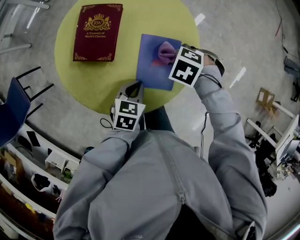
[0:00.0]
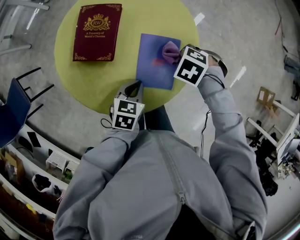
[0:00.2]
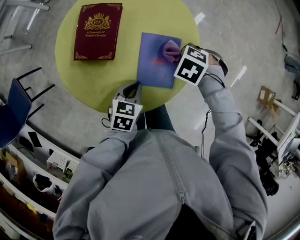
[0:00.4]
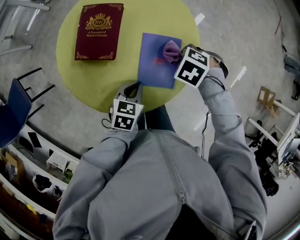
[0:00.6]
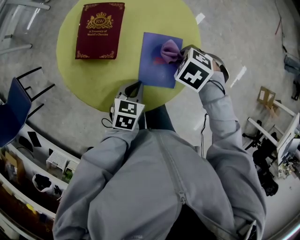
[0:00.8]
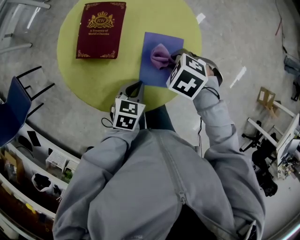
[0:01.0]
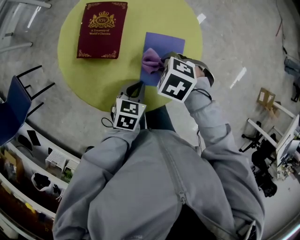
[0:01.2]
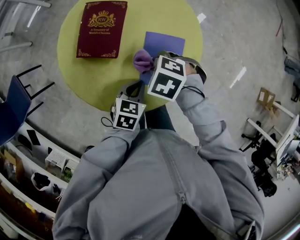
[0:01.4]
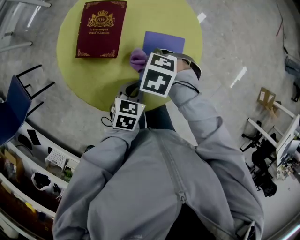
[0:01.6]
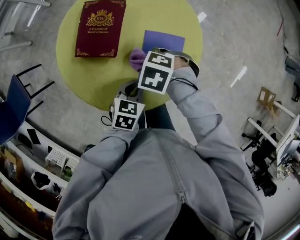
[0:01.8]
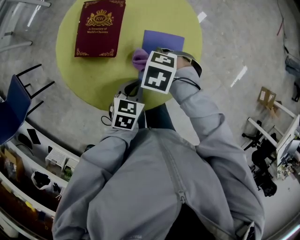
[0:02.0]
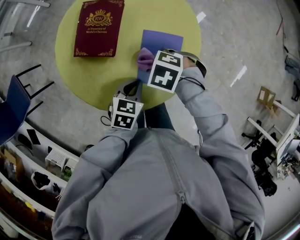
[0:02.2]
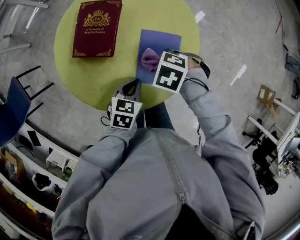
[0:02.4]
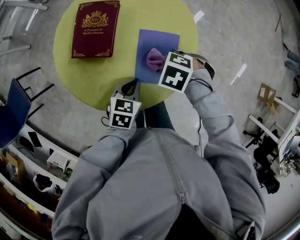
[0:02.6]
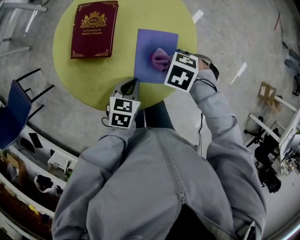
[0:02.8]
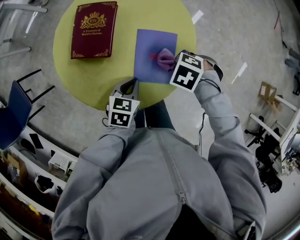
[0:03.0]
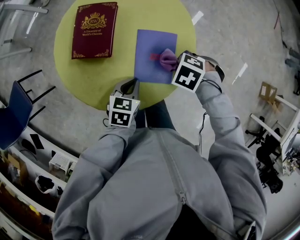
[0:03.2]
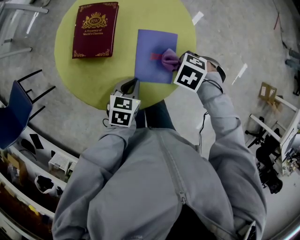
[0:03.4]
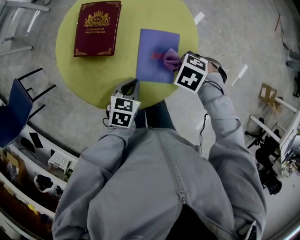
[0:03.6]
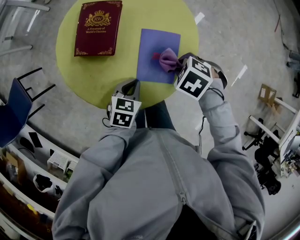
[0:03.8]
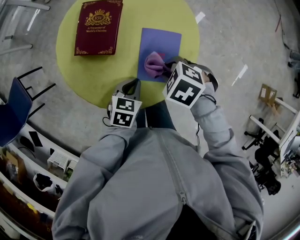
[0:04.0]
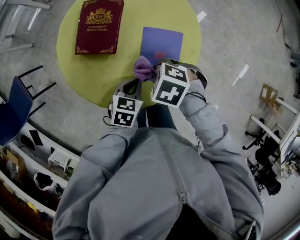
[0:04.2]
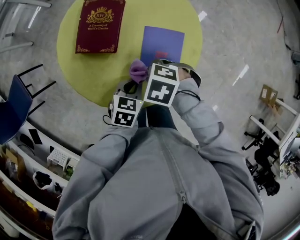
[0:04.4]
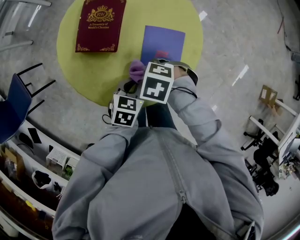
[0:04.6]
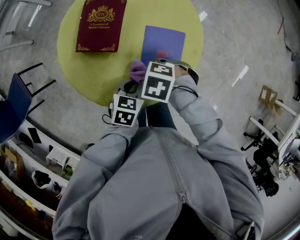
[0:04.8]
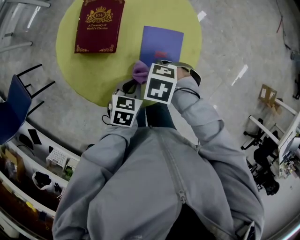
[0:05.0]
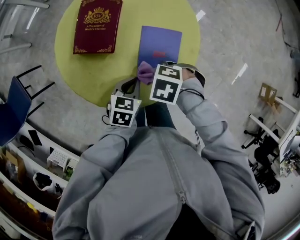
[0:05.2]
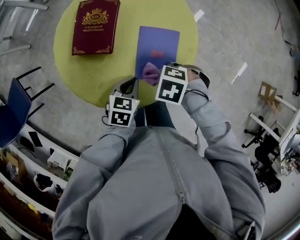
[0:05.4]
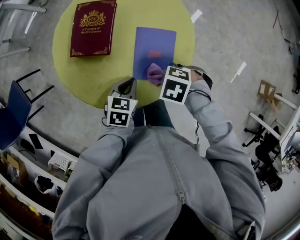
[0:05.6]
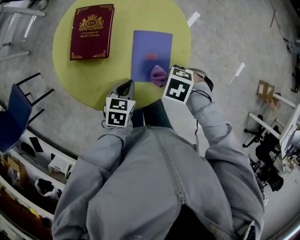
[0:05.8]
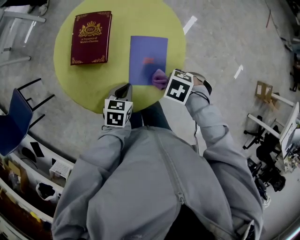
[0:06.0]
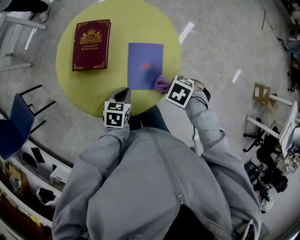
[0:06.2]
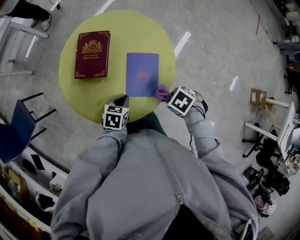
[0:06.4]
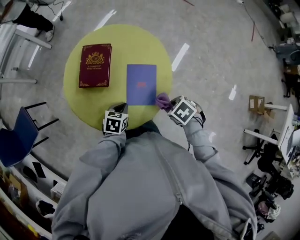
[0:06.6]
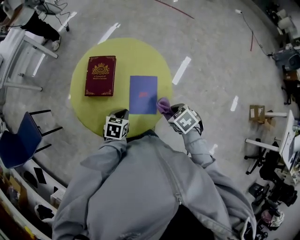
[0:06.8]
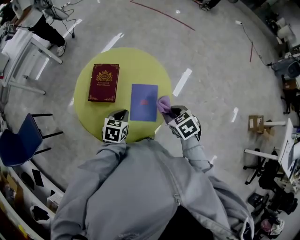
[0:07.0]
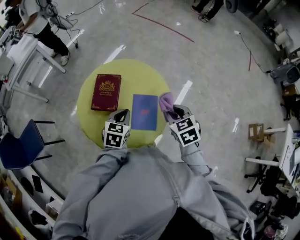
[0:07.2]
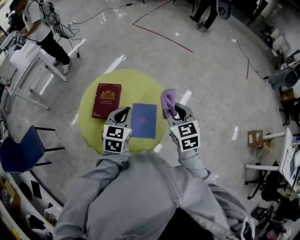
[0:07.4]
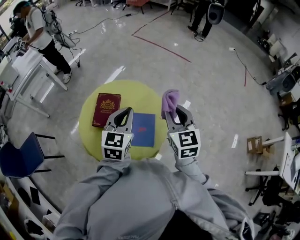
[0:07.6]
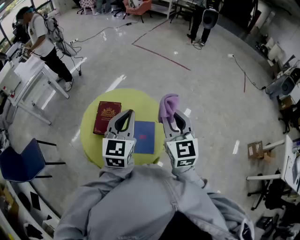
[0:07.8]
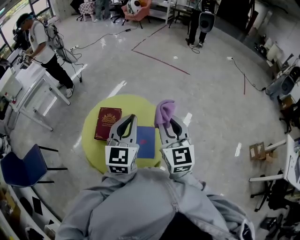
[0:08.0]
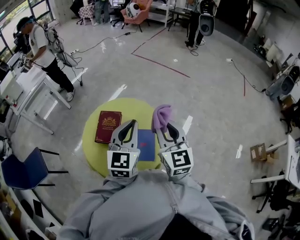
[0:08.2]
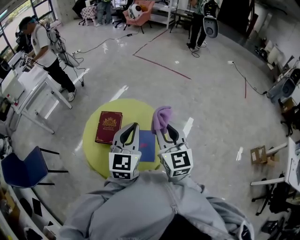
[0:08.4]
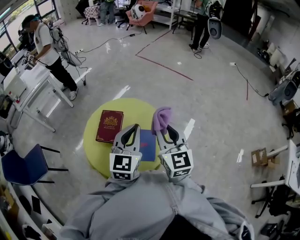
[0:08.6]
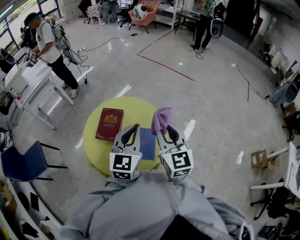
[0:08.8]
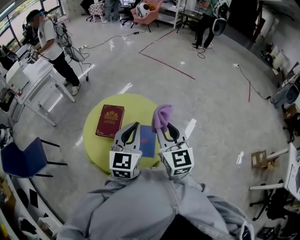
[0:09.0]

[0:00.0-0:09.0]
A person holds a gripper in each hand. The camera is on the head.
0:00.0 to 0:01.6: The right gripper changes place by approximately 10 cm.
0:01.6 to 0:03.0: The right gripper changes place by roughly 15 cm.
0:03.0 to 0:04.4: The right gripper shifts by about 15 cm.
0:04.4 to 0:06.0: The right gripper changes place by approximately 15 cm.
0:06.0 to 0:07.6: Both grippers move upward, roughly 35 cm. The left gripper angles its fingers upward, by roughly 40 degrees. Meanwhile the right gripper tips its fingers upward by approximately 60 degrees.
0:07.6 to 0:09.0: The left gripper travels backward by approximately 5 cm; the right gripper moves some 5 cm.

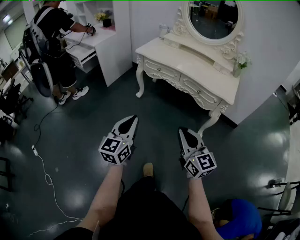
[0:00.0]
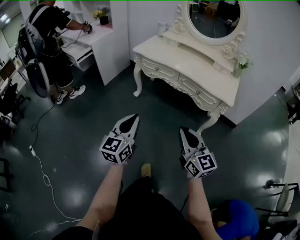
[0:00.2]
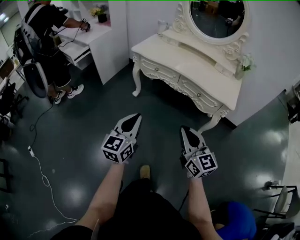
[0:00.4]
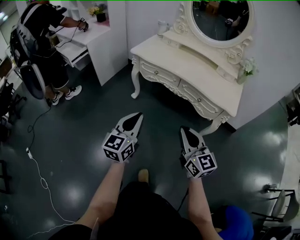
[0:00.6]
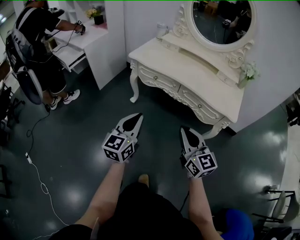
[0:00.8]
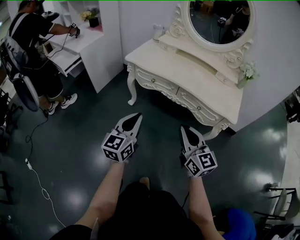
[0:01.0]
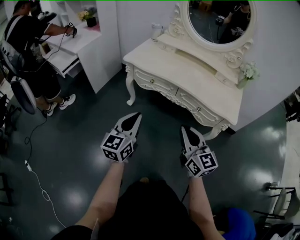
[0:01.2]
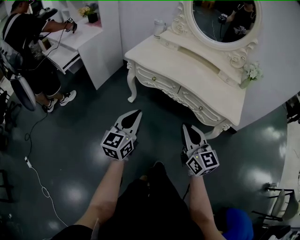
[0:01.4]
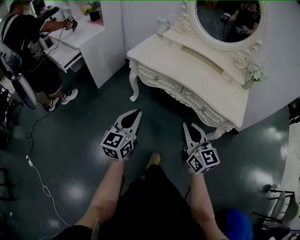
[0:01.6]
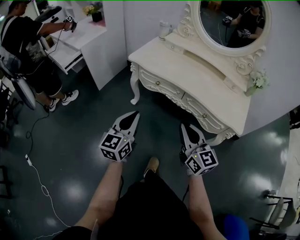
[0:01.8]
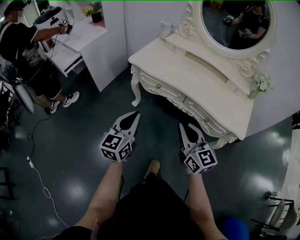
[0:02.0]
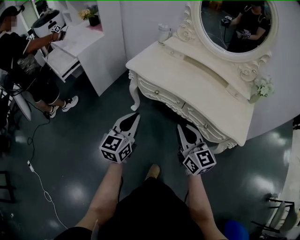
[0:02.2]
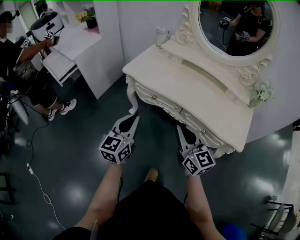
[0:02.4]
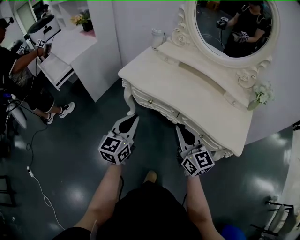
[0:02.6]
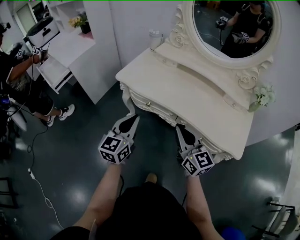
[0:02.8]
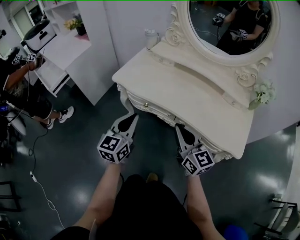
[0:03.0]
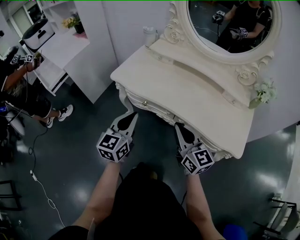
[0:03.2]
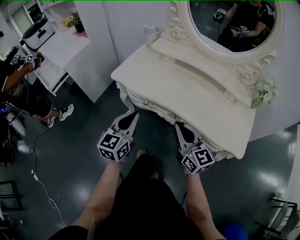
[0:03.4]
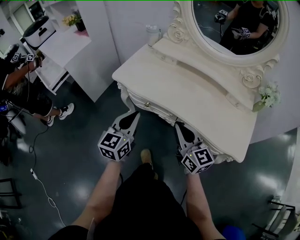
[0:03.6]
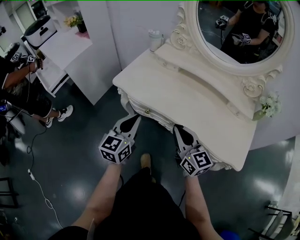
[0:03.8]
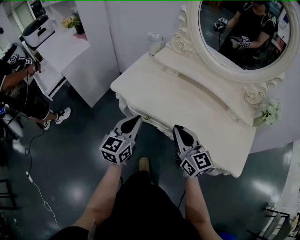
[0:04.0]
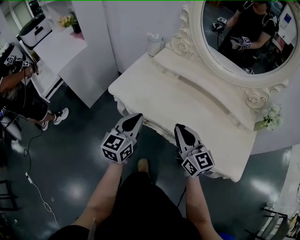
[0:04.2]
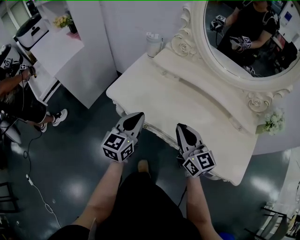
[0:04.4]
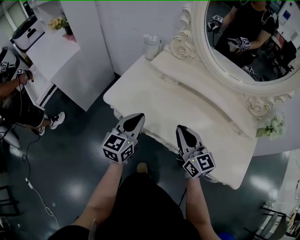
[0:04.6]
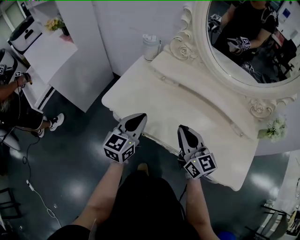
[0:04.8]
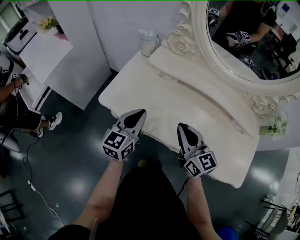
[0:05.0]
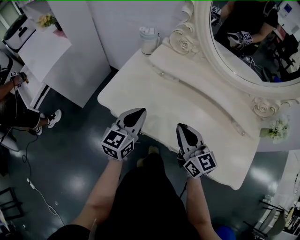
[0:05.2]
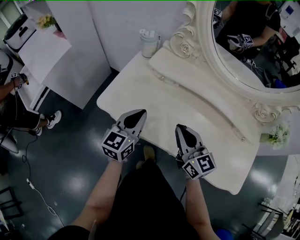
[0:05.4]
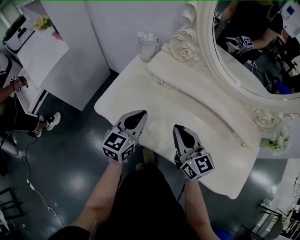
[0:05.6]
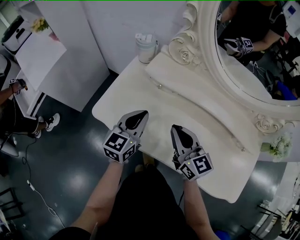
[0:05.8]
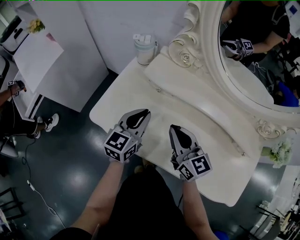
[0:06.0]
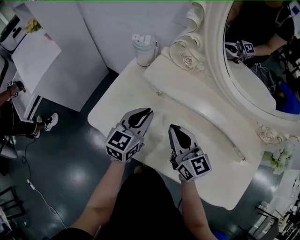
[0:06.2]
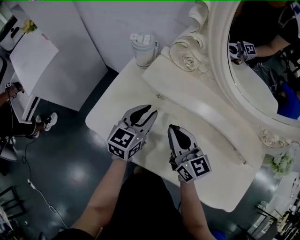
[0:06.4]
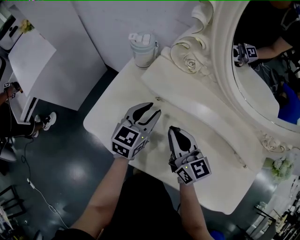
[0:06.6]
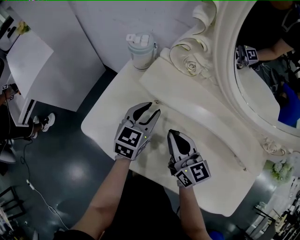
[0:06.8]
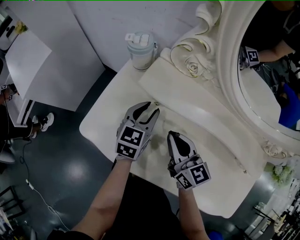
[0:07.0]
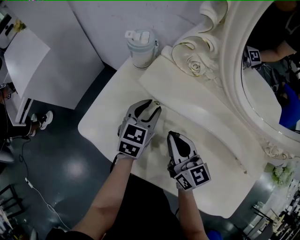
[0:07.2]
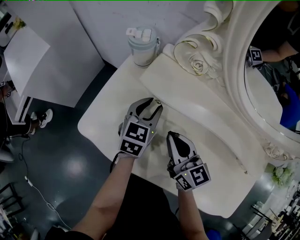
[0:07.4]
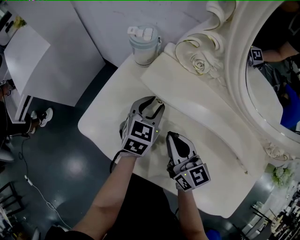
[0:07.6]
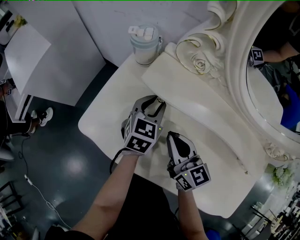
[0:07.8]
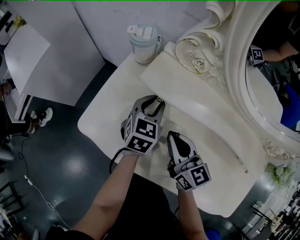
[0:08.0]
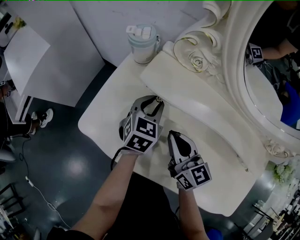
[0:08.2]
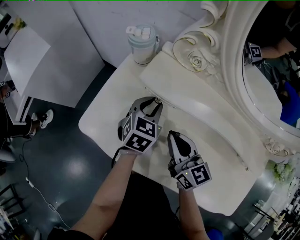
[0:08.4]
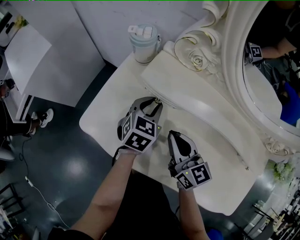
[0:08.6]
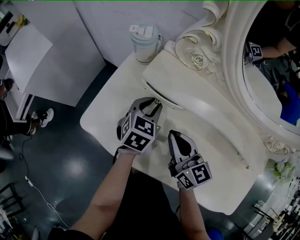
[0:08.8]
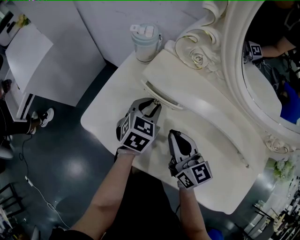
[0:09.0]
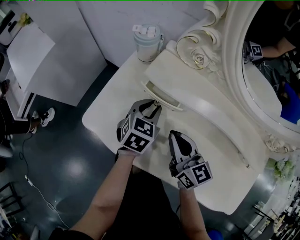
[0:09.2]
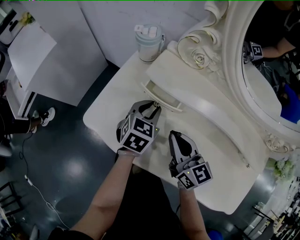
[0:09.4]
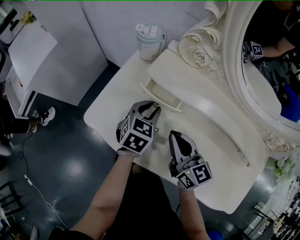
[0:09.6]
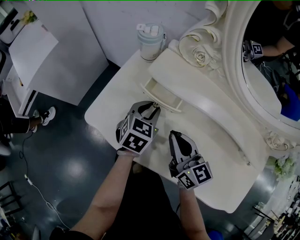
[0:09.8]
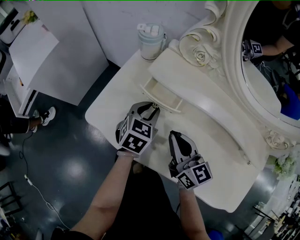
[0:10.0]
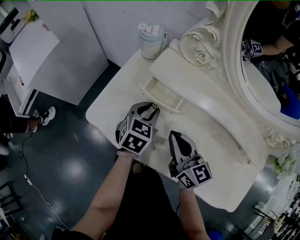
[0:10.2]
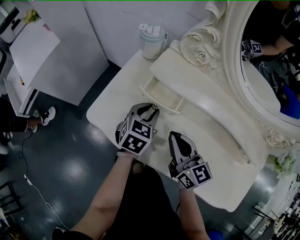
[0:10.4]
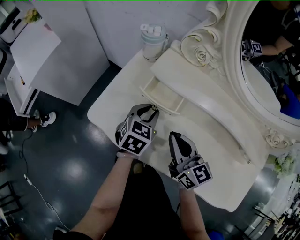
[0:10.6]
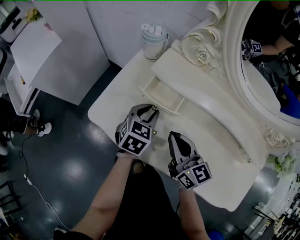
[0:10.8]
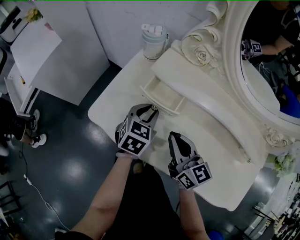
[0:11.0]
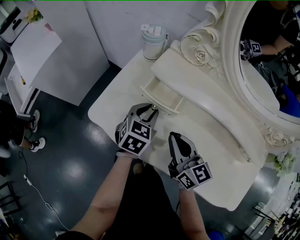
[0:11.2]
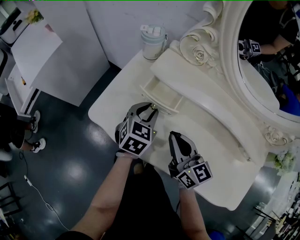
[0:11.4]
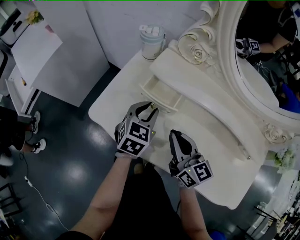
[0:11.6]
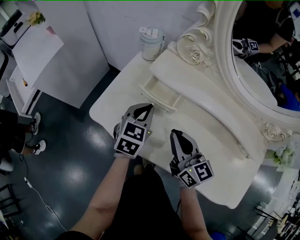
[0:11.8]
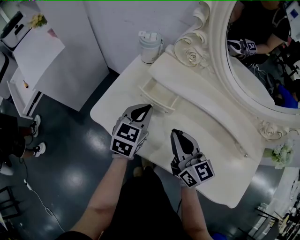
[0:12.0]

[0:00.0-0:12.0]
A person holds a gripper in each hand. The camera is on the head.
0:00.0 to 0:01.6: Both grippers travel together forward, approximately 30 cm.
0:01.6 to 0:03.0: The two grippers go about 20 cm forward.
0:03.0 to 0:04.4: Both grippers travel together forward, some 20 cm.
0:04.4 to 0:06.0: The two grippers go some 20 cm forward.
0:06.0 to 0:07.6: The left gripper is displaced forward and downward by about 15 cm, and opens, while the right gripper goes about 10 cm downward and forward.
0:07.6 to 0:09.0: The grippers move only a little.
0:09.0 to 0:10.4: The left gripper ends up some 5 cm from where it was.
0:10.4 to 0:12.0: The right gripper changes place by roughly 5 cm; the left gripper moves upward, approximately 5 cm, and closes its fingers.

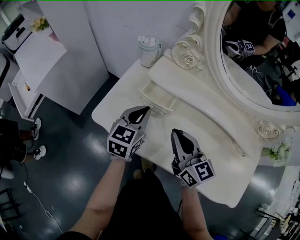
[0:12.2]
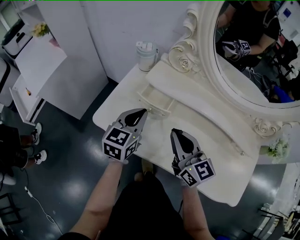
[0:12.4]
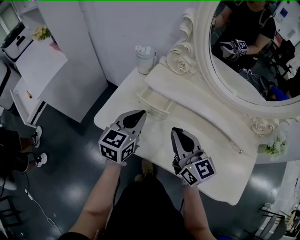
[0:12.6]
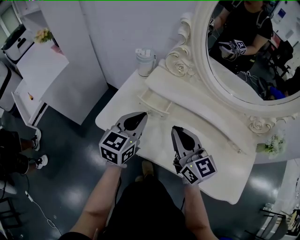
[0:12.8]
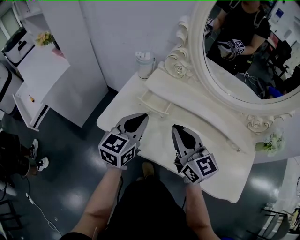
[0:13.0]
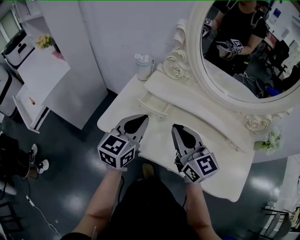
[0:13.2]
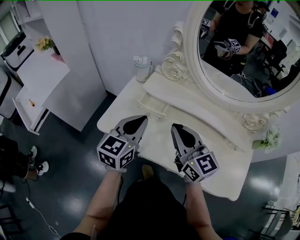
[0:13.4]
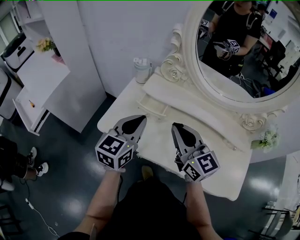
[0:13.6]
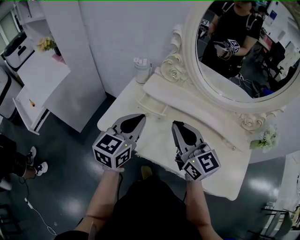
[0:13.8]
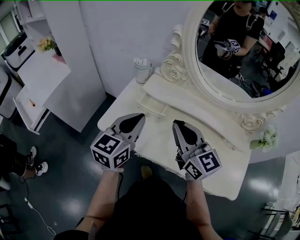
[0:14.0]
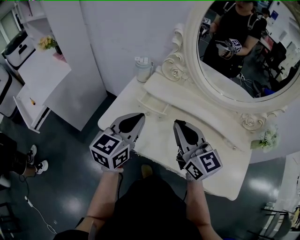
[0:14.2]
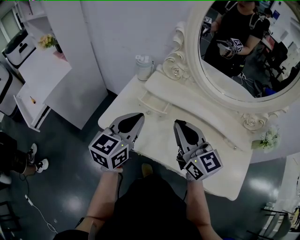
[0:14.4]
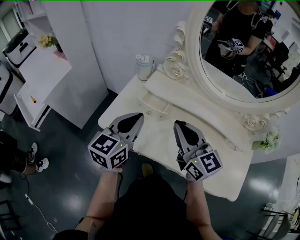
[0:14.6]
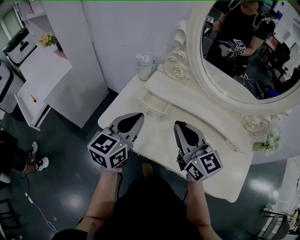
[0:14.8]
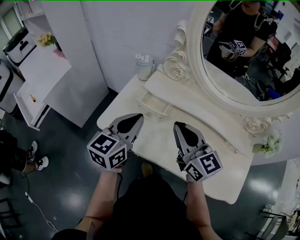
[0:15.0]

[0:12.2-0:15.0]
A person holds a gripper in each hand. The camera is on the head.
0:12.2 to 0:13.6: The right gripper travels upward by about 10 cm, while the left gripper is displaced upward and backward by roughly 15 cm.
0:13.6 to 0:15.0: The grippers stay close to where they were, moving slightly.
